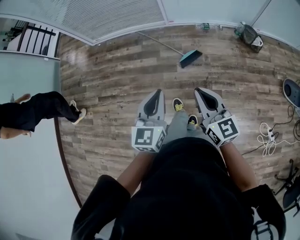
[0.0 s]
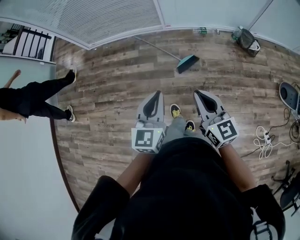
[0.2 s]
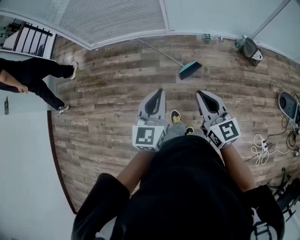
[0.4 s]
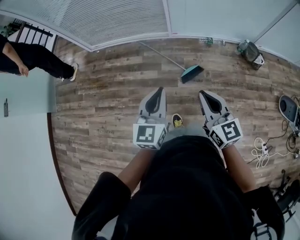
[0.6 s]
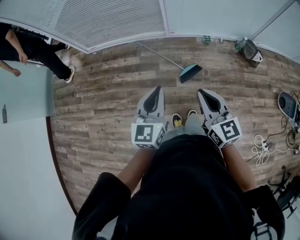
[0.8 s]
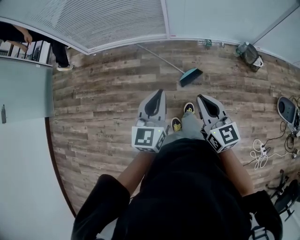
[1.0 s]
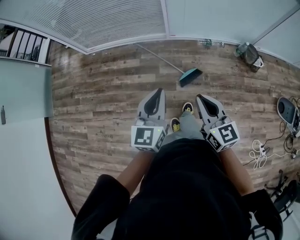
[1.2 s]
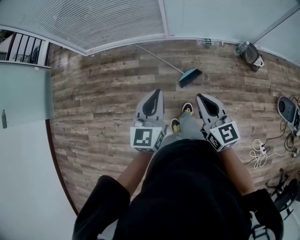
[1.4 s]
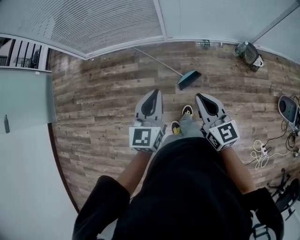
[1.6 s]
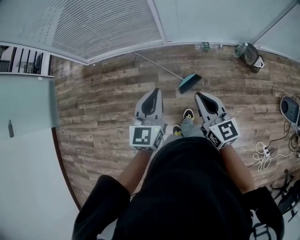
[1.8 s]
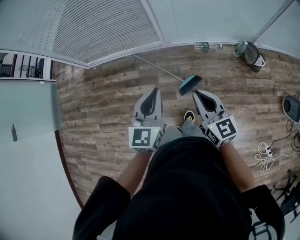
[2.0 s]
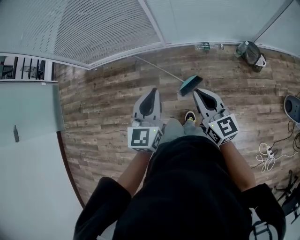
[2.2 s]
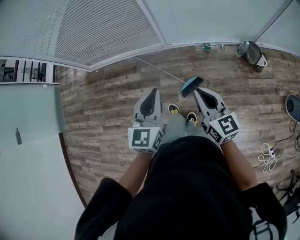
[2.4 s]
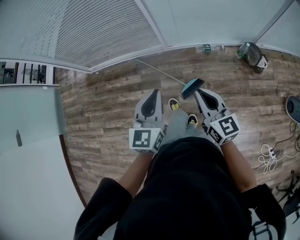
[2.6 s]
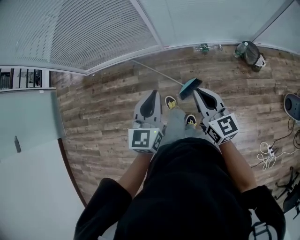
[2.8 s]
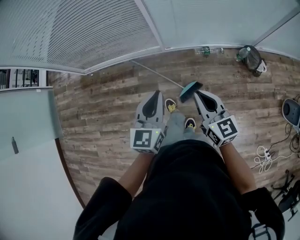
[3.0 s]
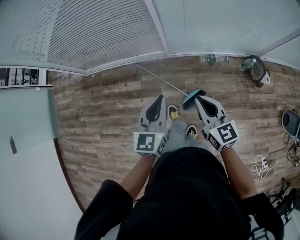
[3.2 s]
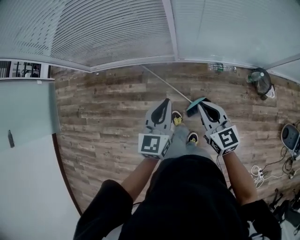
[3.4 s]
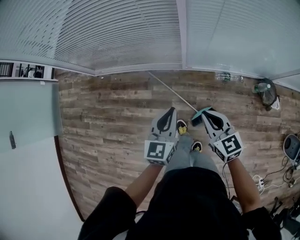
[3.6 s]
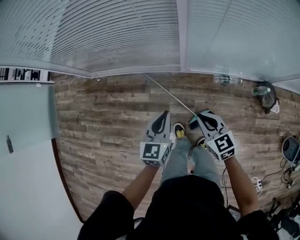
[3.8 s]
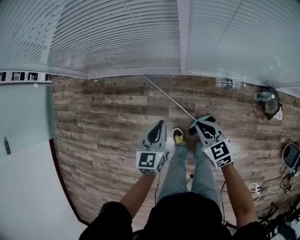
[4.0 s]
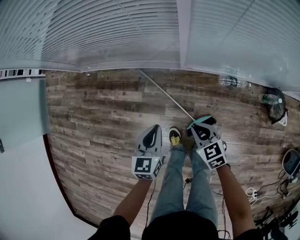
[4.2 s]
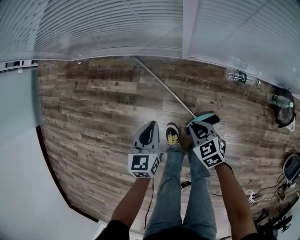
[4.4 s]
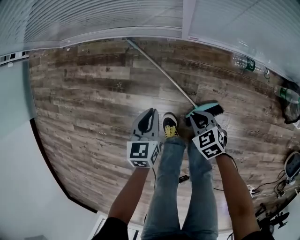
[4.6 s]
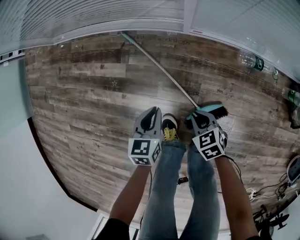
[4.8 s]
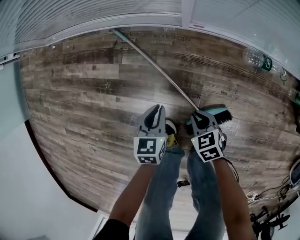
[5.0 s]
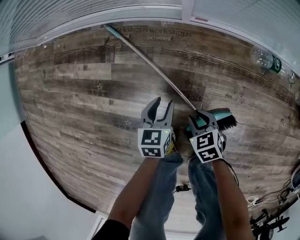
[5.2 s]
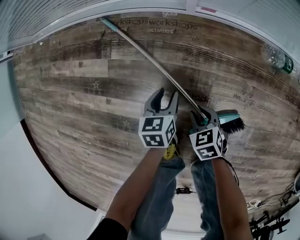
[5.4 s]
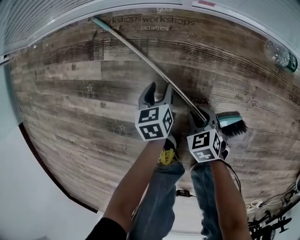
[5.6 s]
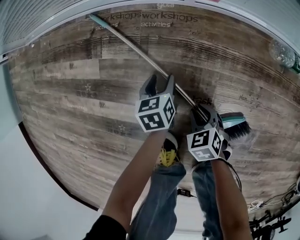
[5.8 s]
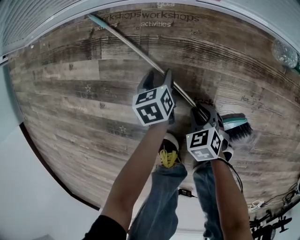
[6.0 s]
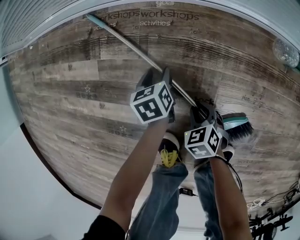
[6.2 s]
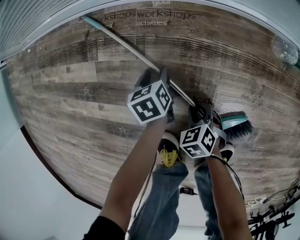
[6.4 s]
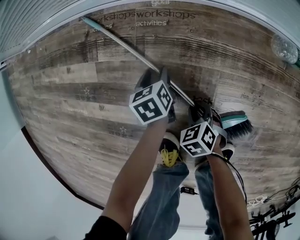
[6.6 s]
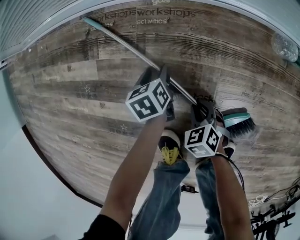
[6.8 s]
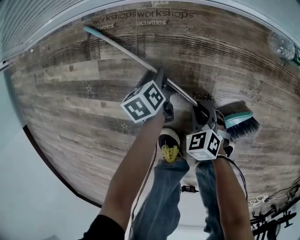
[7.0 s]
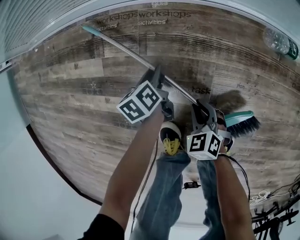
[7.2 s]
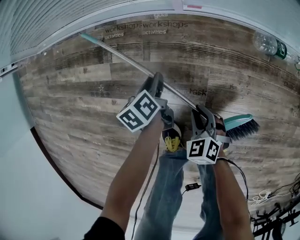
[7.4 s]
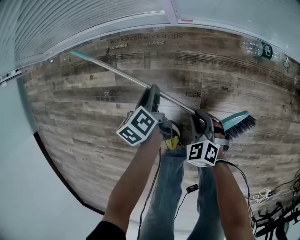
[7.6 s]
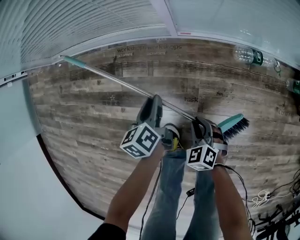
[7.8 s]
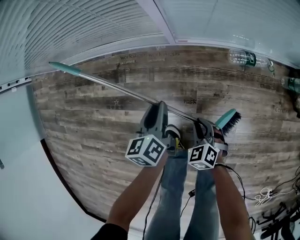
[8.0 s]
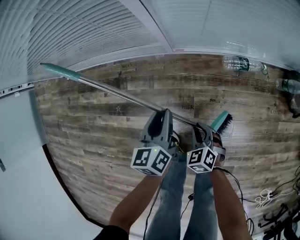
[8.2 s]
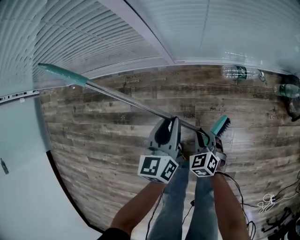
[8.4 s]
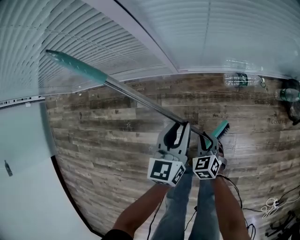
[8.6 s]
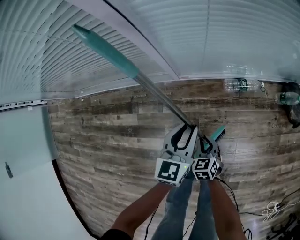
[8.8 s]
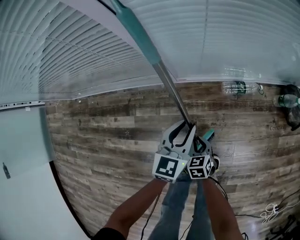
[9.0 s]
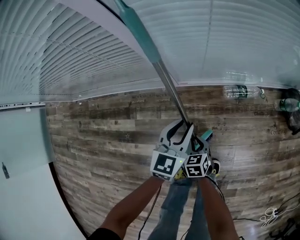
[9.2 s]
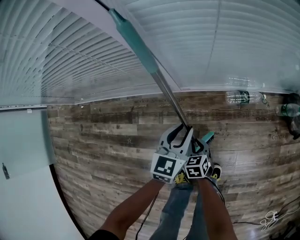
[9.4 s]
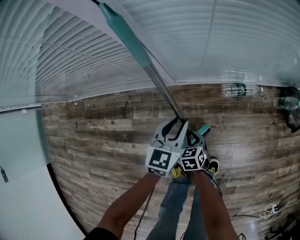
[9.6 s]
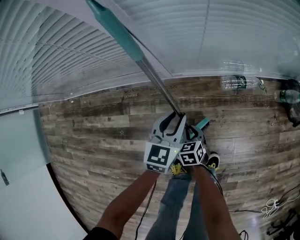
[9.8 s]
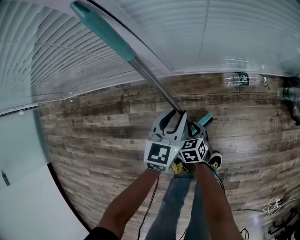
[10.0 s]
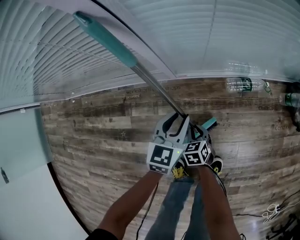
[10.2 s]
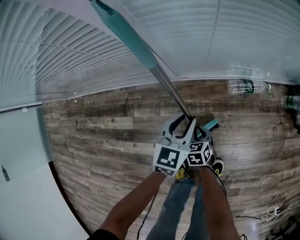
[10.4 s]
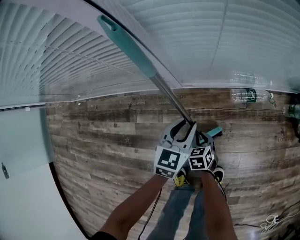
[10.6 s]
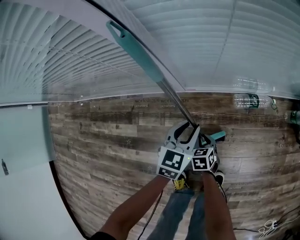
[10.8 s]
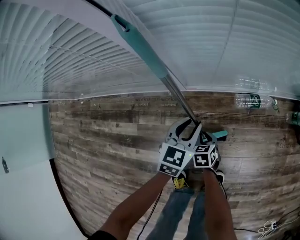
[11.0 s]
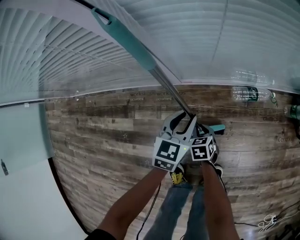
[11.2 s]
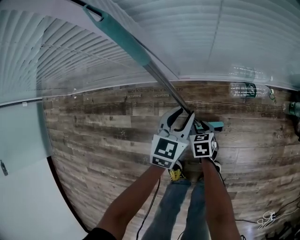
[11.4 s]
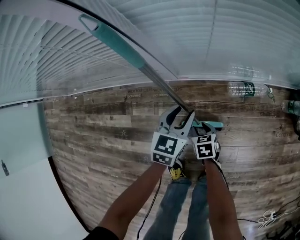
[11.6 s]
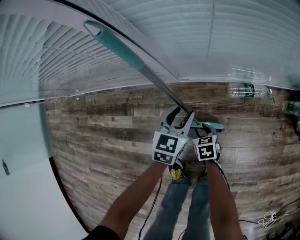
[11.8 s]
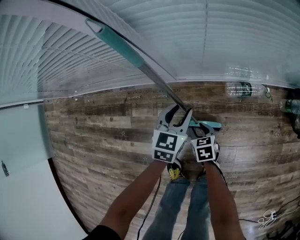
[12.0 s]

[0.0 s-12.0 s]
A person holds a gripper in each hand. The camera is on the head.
0.0 to 1.6 s: The two grippers go roughly 25 cm forward.
1.6 to 3.0 s: Both grippers travel together forward, about 20 cm.
3.0 to 4.4 s: The two grippers go about 50 cm downward and forward. The left gripper rotates roughly 30 degrees; the right gripper points its fingers about 40 degrees further downward.
4.4 to 6.0 s: Both grippers move downward, roughly 50 cm. The right gripper opens. The left gripper rotates roughly 30 degrees, and opens up.
6.0 to 7.6 s: Both grippers travel together upward, roughly 20 cm. The left gripper swivels approximately 20 degrees, and closes up.
7.6 to 9.0 s: The right gripper moves upward, roughly 15 cm, and turns by approximately 30 degrees. The left gripper moves upward and to the right, about 35 cm, and twists approximately 60 degrees clockwise, seen from behind.
9.0 to 10.4 s: The right gripper is displaced downward and forward by approximately 10 cm; the left gripper is displaced downward by approximately 10 cm.
10.4 to 12.0 s: The right gripper opens.

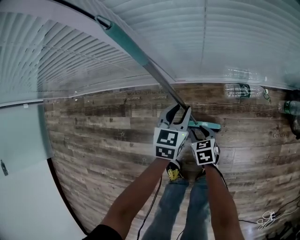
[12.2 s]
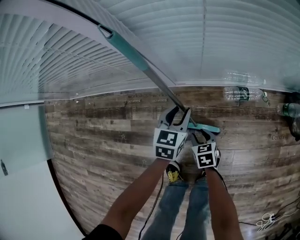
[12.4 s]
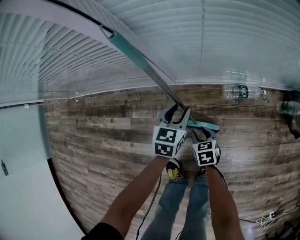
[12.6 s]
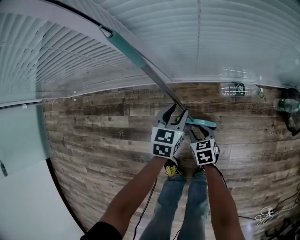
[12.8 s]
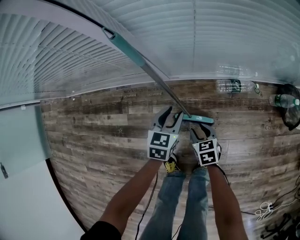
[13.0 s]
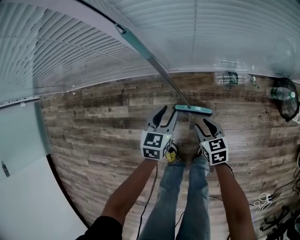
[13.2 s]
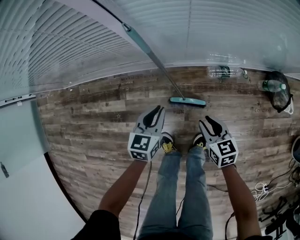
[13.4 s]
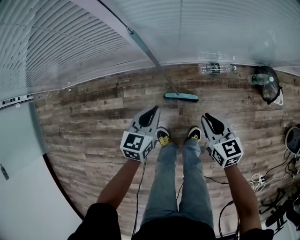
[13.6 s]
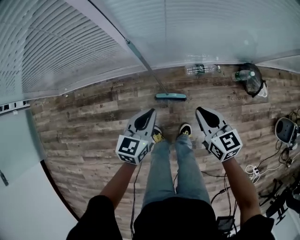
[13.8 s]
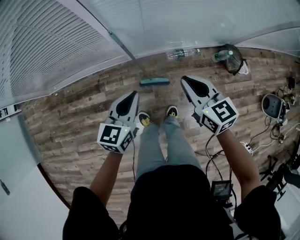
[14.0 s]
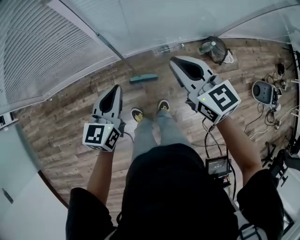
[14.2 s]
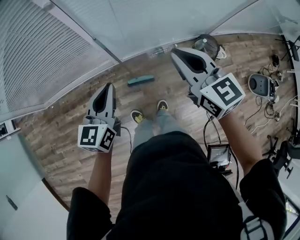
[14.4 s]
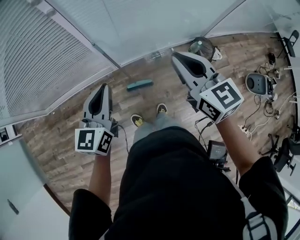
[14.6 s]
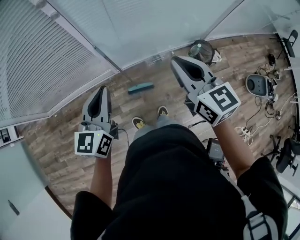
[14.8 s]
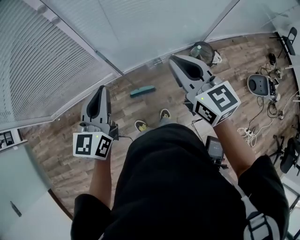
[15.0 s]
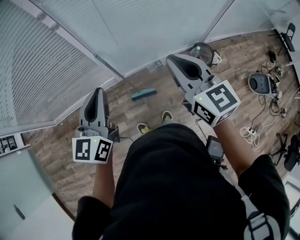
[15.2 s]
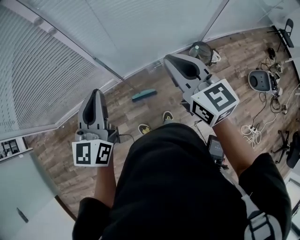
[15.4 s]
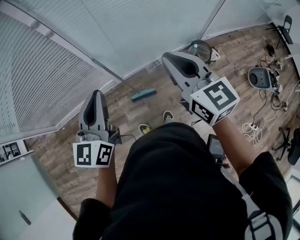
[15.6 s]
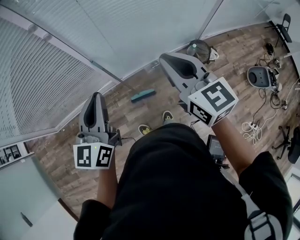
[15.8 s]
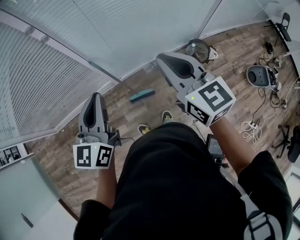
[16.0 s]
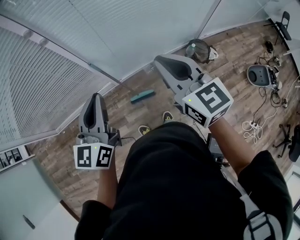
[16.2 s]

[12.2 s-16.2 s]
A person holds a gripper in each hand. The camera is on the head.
12.2 to 13.6 s: The right gripper moves upward, some 35 cm, turns by approximately 20 degrees, and closes. Meanwhile the left gripper moves upward and backward, some 25 cm, and closes.
13.6 to 14.8 s: Both grippers travel together upward, approximately 50 cm. The left gripper rotates about 30 degrees, while the right gripper swivels roughly 30 degrees.
14.8 to 16.2 s: The left gripper travels upward by roughly 5 cm.

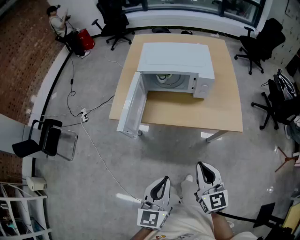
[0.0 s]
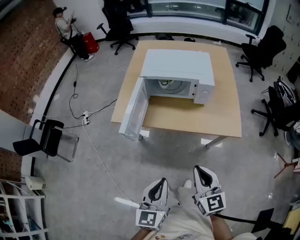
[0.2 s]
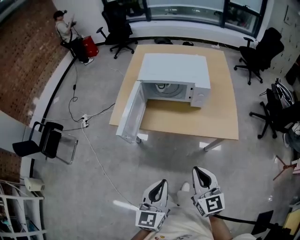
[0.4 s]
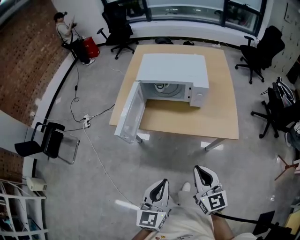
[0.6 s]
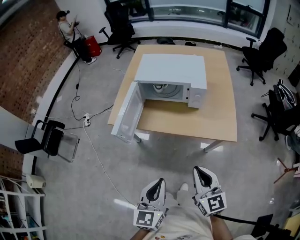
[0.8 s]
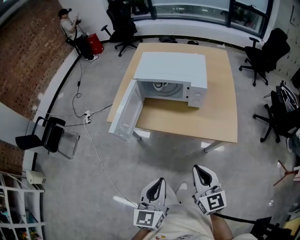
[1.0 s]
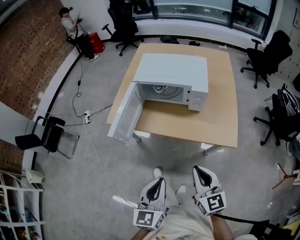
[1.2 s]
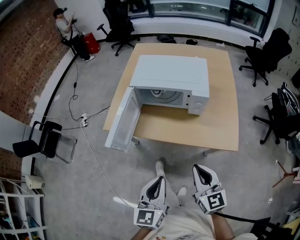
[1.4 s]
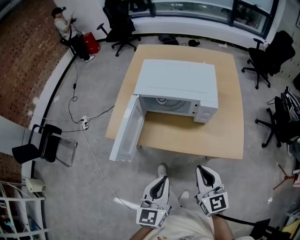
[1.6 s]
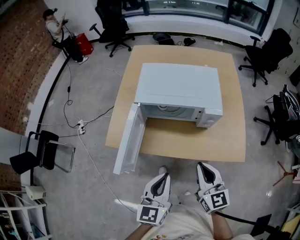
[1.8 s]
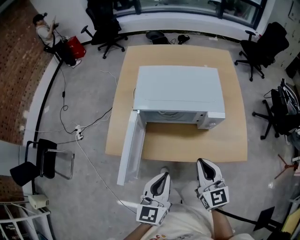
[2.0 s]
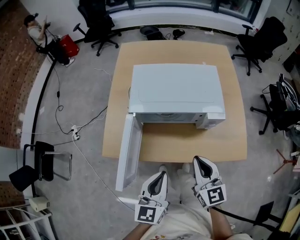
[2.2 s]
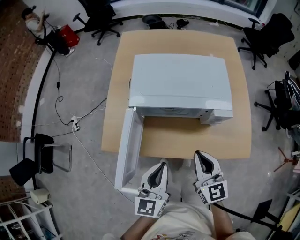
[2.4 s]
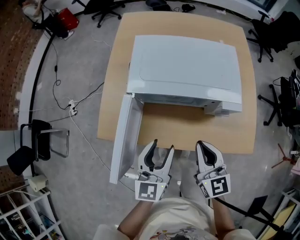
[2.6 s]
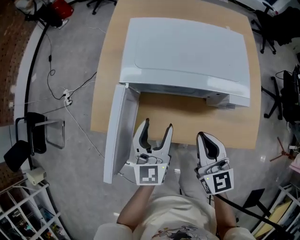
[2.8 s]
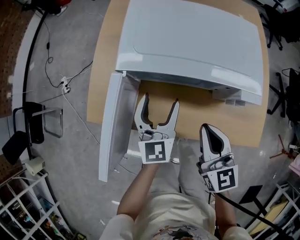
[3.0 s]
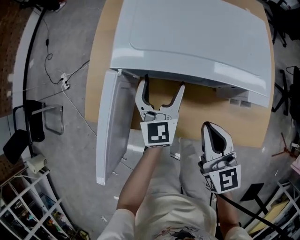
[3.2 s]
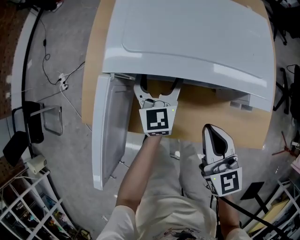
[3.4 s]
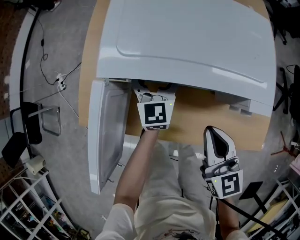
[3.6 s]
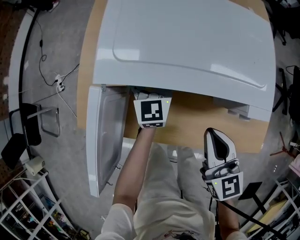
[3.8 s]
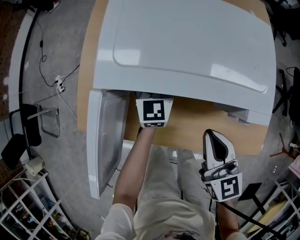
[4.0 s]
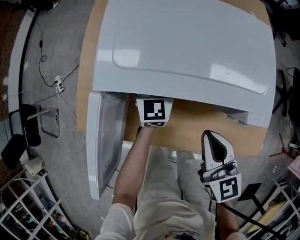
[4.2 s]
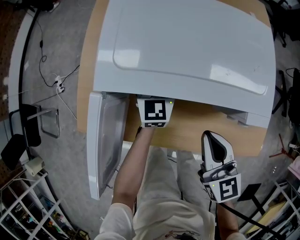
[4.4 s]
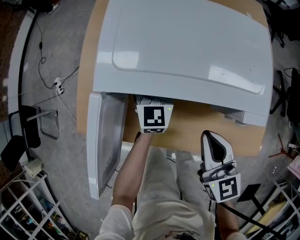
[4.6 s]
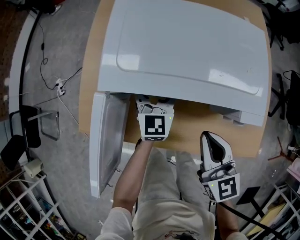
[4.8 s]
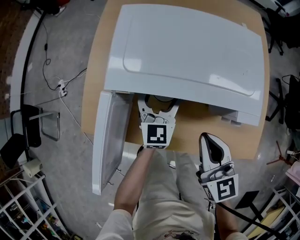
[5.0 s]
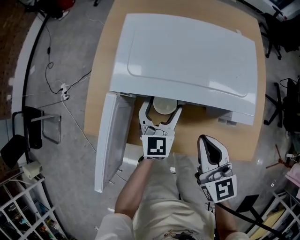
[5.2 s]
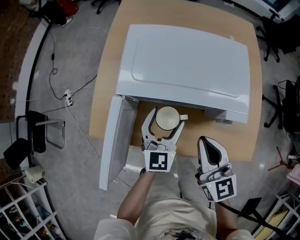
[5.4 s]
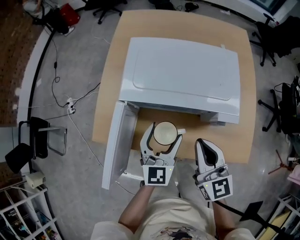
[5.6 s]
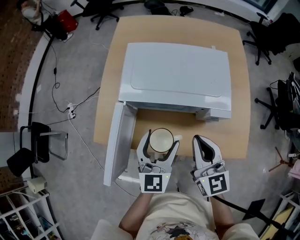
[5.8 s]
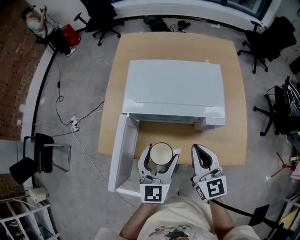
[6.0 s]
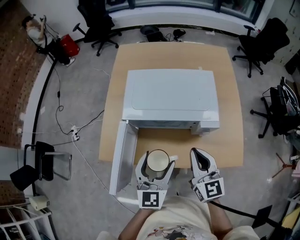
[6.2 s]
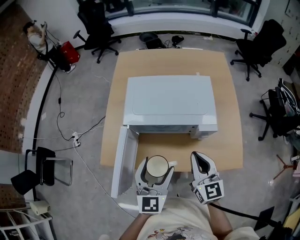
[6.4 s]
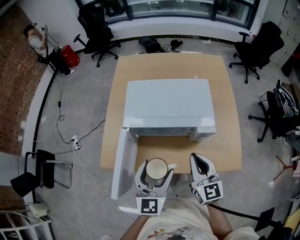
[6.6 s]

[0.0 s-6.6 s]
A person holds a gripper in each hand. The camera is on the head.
0.0 to 1.6 s: The grippers both shift forward by roughly 15 cm.
1.6 to 3.2 s: The left gripper travels forward and downward by approximately 40 cm, and opens up; the right gripper shifts some 25 cm forward and downward.
3.2 to 5.0 s: The left gripper reaches about 10 cm forward, then returns.
5.0 to 6.6 s: The left gripper is displaced upward and backward by approximately 30 cm. The right gripper moves upward and backward, about 15 cm.

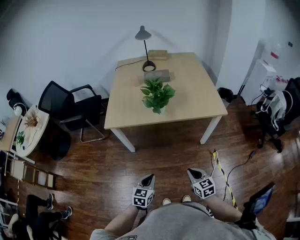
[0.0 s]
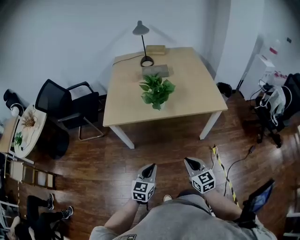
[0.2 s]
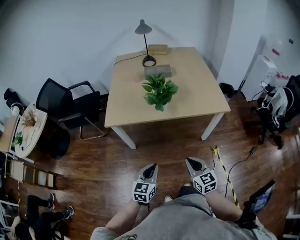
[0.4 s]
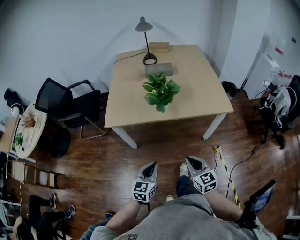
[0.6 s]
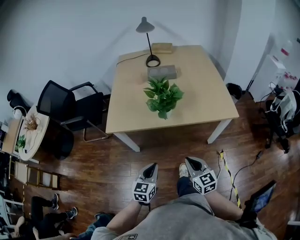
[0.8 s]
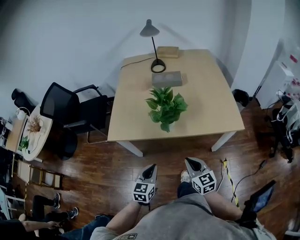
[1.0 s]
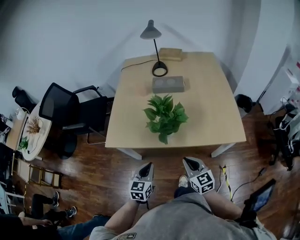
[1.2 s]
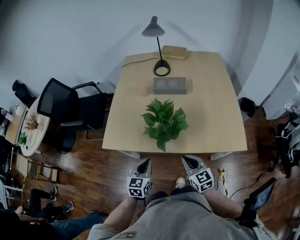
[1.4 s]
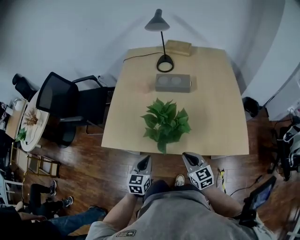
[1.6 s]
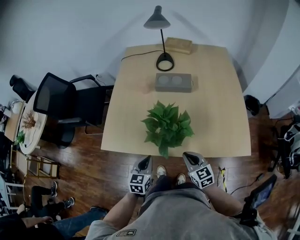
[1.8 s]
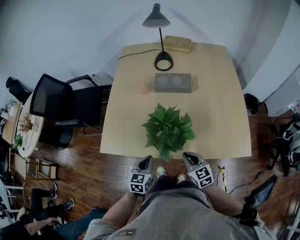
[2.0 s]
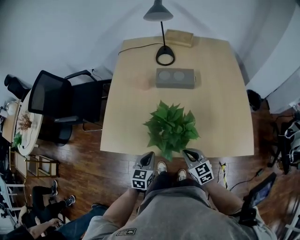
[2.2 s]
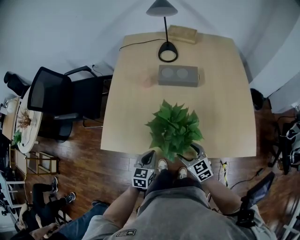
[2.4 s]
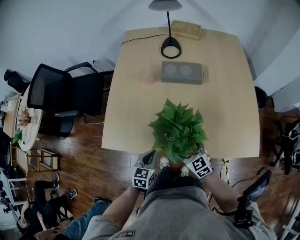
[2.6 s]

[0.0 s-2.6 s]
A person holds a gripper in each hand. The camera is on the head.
0.0 to 1.2 s: Both grippers move forward, roughly 25 cm.
1.2 to 2.6 s: The two grippers go about 15 cm forward and downward. The right gripper turns by some 20 degrees, and opens.
